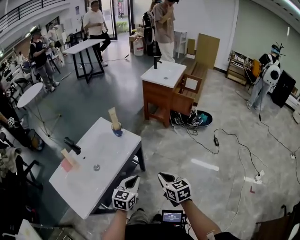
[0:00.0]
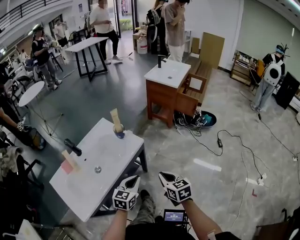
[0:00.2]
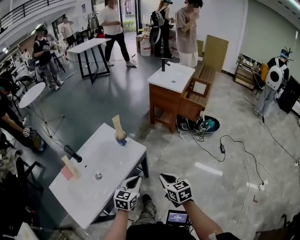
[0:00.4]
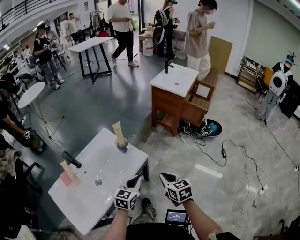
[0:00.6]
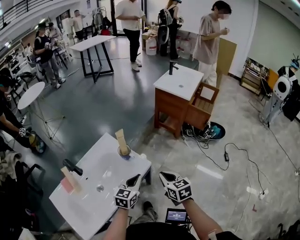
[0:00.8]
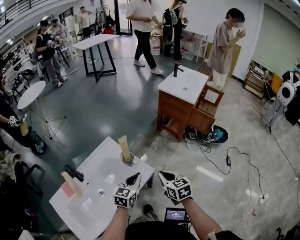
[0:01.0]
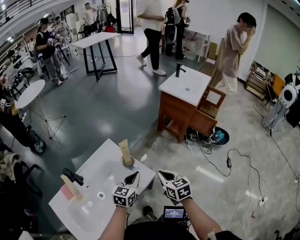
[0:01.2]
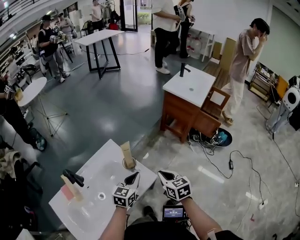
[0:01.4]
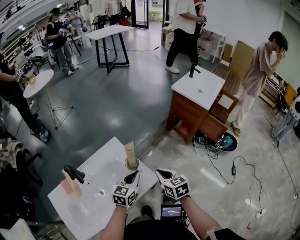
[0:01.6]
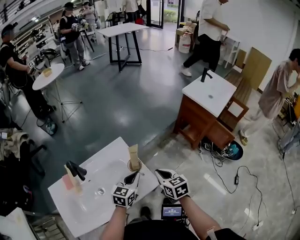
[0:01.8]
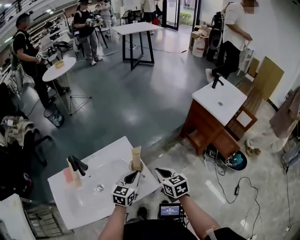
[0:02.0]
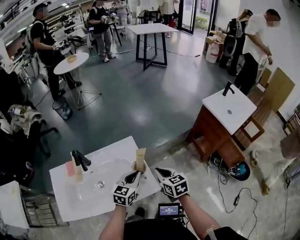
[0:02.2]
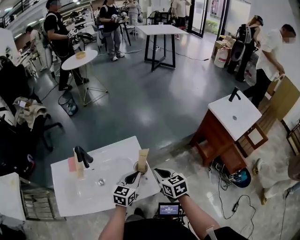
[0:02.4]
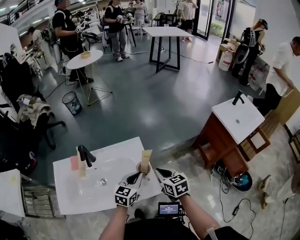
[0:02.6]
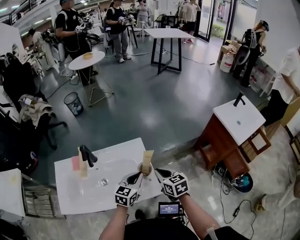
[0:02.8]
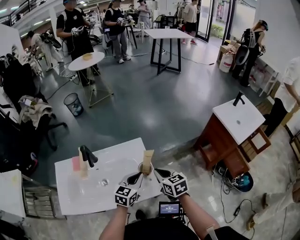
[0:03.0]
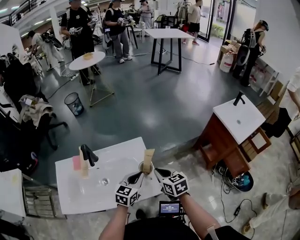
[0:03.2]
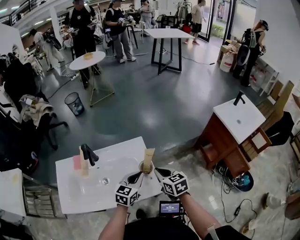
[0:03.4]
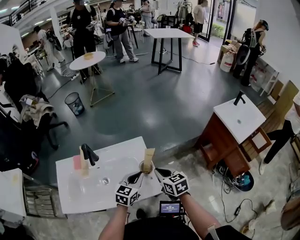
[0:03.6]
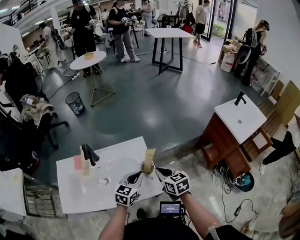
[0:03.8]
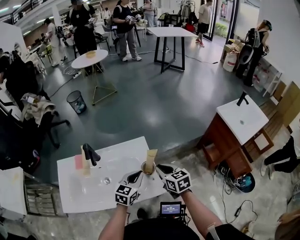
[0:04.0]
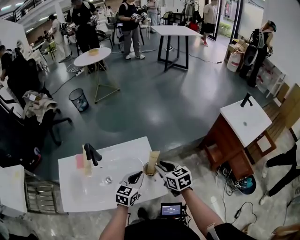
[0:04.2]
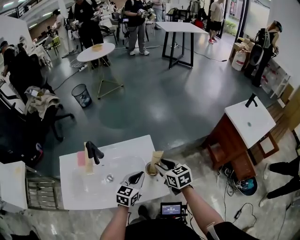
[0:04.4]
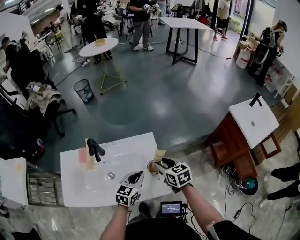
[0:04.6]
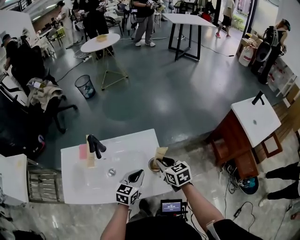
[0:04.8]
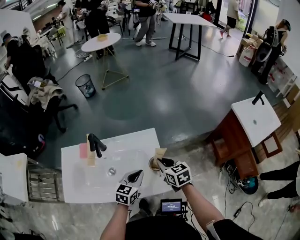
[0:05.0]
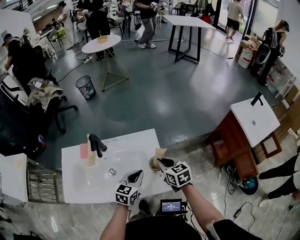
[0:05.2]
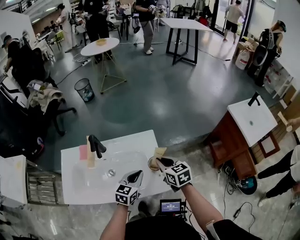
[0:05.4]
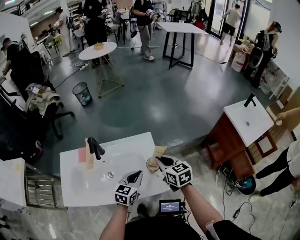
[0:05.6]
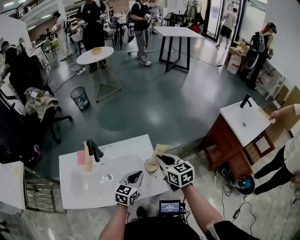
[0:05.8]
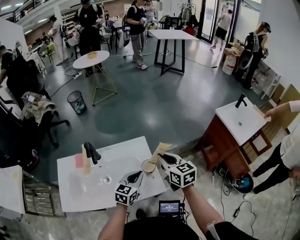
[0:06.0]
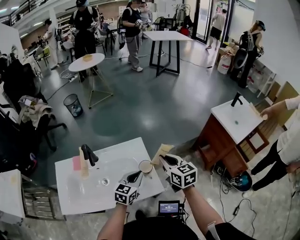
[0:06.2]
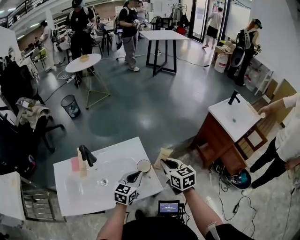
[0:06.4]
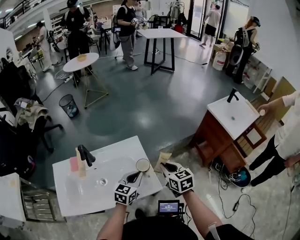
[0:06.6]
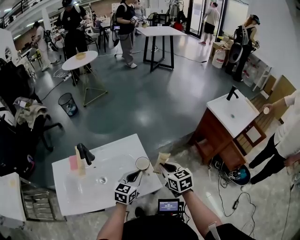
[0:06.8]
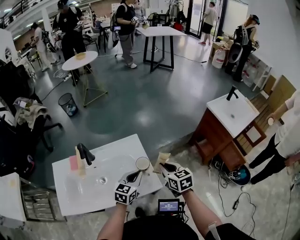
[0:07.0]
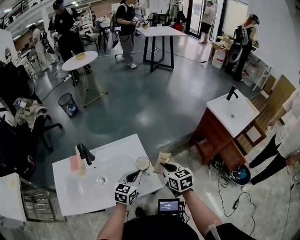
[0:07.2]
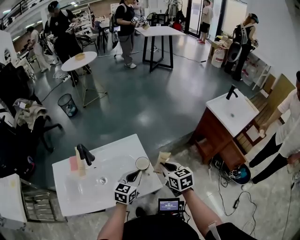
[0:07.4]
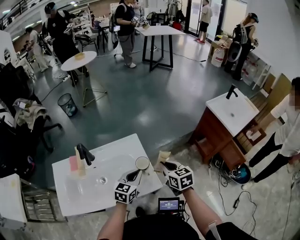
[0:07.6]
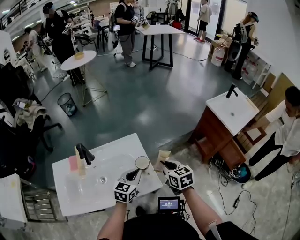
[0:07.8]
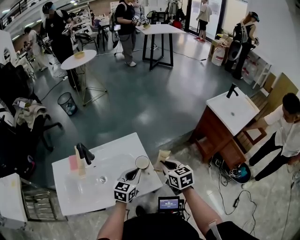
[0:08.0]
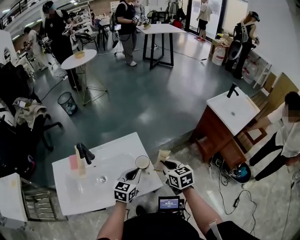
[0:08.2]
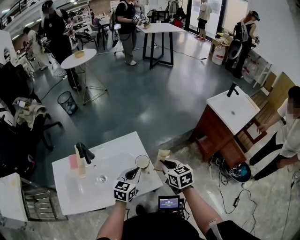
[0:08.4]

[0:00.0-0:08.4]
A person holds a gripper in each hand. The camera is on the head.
0:00.0 to 0:01.4: Both grippers travel together forward, roughly 30 cm.
0:01.4 to 0:02.8: The left gripper changes place by about 5 cm, and rotates approximately 30 degrees, while the right gripper changes place by about 10 cm, and turns by roughly 30 degrees.
0:02.8 to 0:04.2: The right gripper opens up.
0:04.2 to 0:05.6: The right gripper closes up.
0:05.6 to 0:07.0: The right gripper heads to the right, covering about 10 cm.
0:07.0 to 0:08.4: Both grippers stay put.

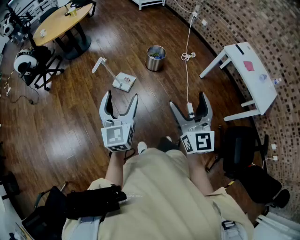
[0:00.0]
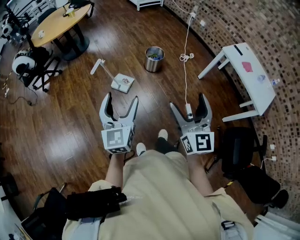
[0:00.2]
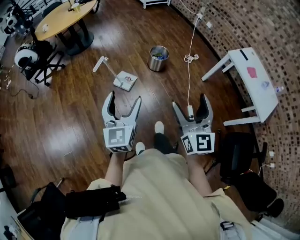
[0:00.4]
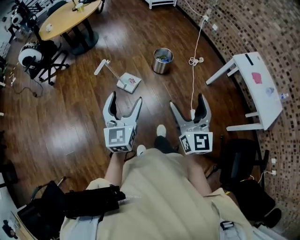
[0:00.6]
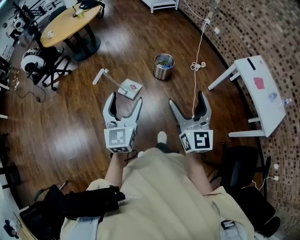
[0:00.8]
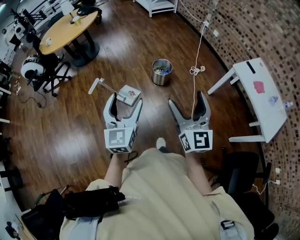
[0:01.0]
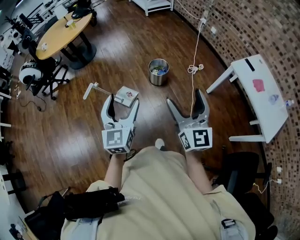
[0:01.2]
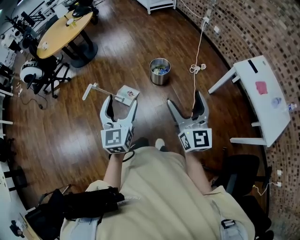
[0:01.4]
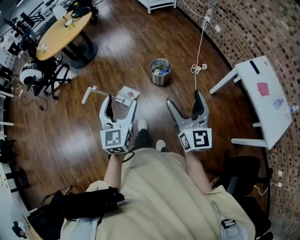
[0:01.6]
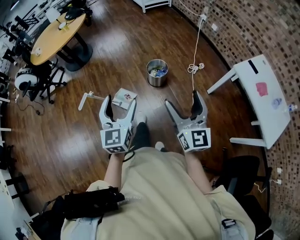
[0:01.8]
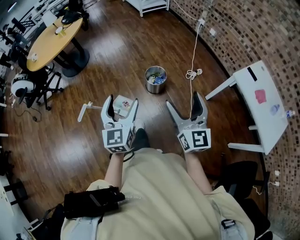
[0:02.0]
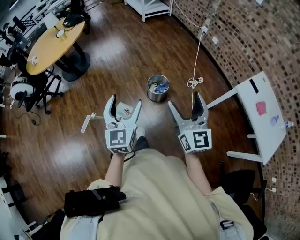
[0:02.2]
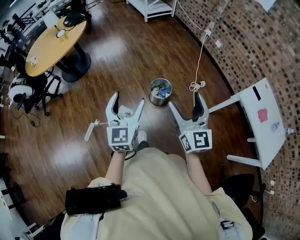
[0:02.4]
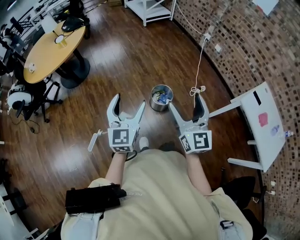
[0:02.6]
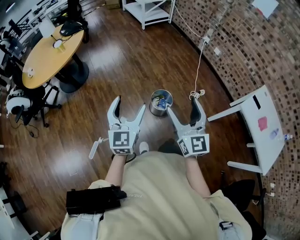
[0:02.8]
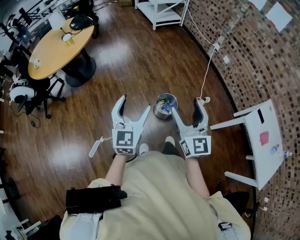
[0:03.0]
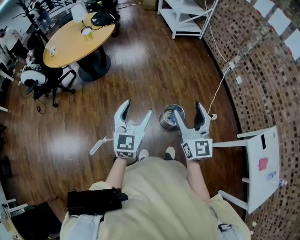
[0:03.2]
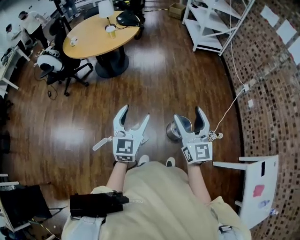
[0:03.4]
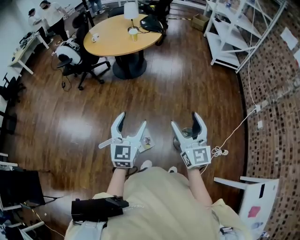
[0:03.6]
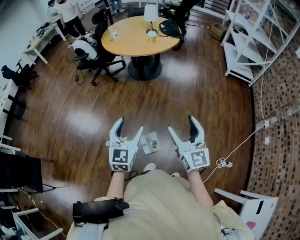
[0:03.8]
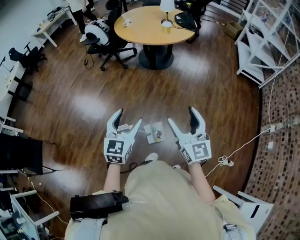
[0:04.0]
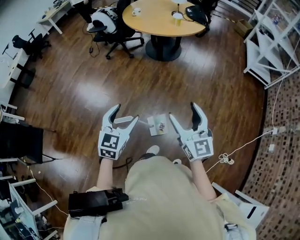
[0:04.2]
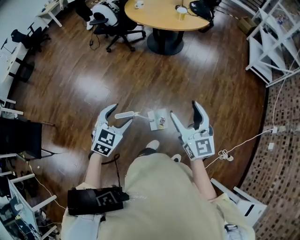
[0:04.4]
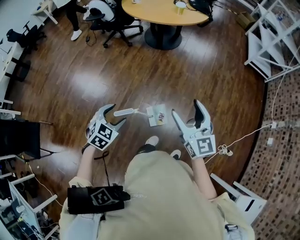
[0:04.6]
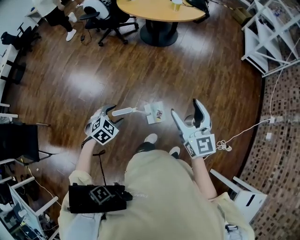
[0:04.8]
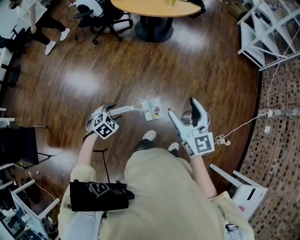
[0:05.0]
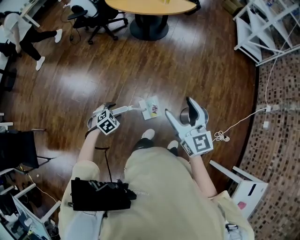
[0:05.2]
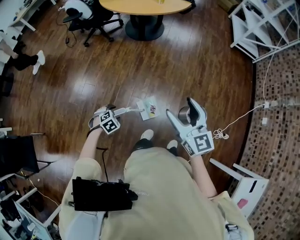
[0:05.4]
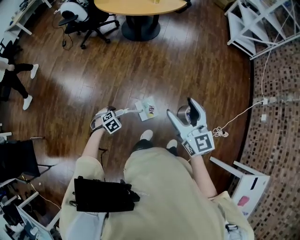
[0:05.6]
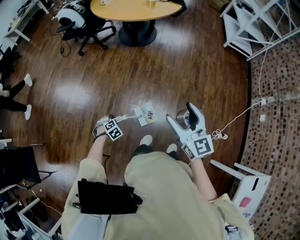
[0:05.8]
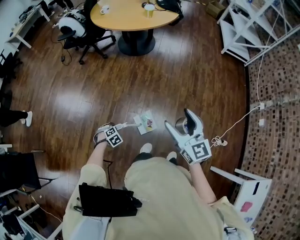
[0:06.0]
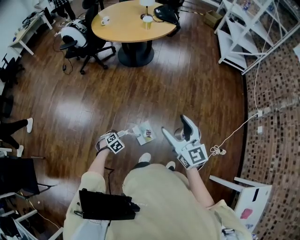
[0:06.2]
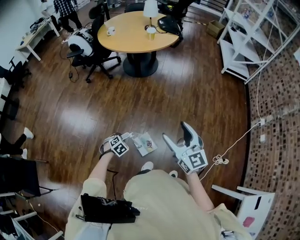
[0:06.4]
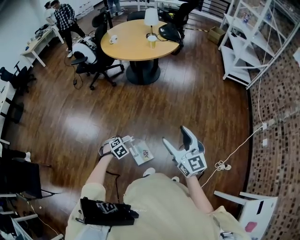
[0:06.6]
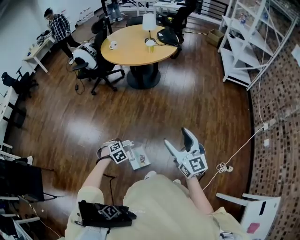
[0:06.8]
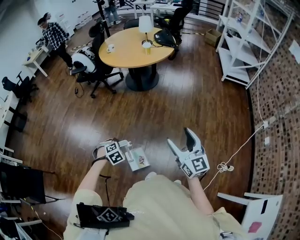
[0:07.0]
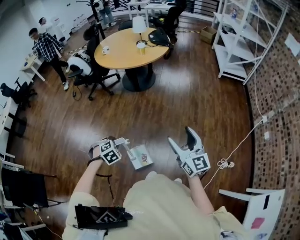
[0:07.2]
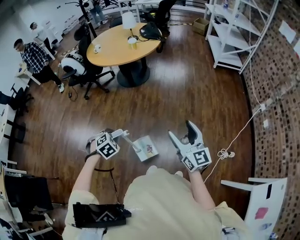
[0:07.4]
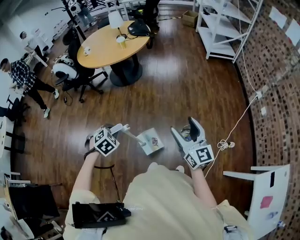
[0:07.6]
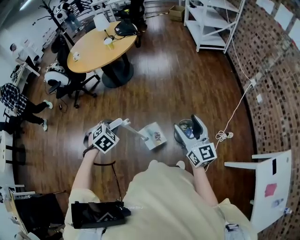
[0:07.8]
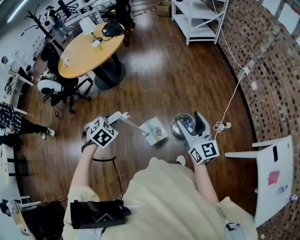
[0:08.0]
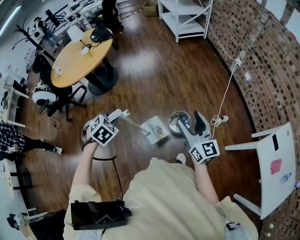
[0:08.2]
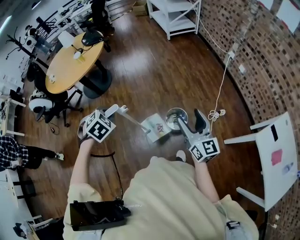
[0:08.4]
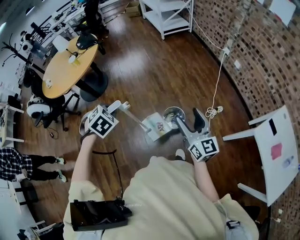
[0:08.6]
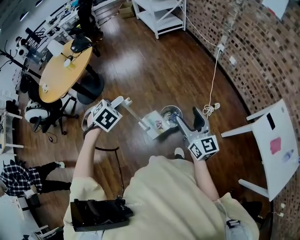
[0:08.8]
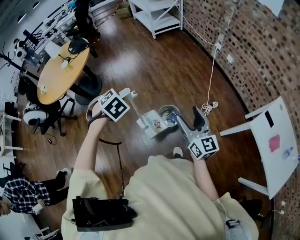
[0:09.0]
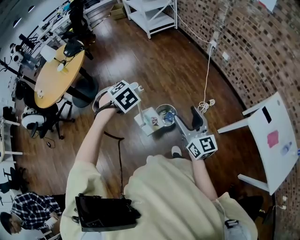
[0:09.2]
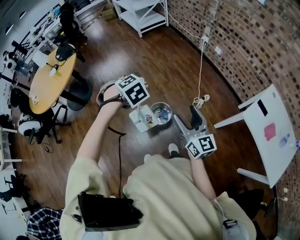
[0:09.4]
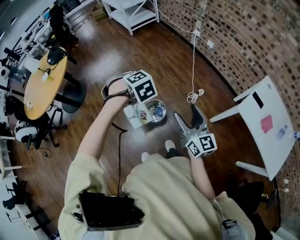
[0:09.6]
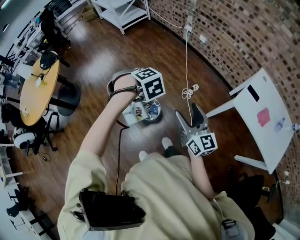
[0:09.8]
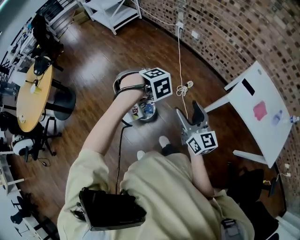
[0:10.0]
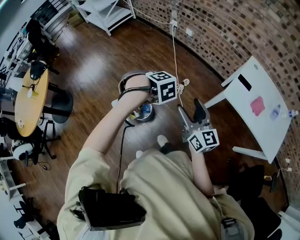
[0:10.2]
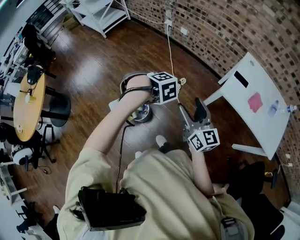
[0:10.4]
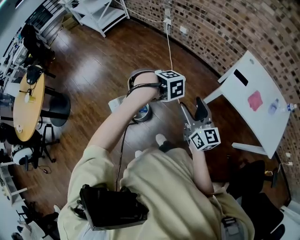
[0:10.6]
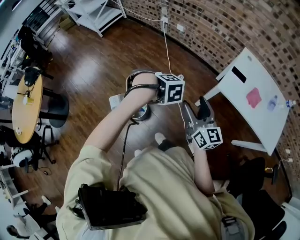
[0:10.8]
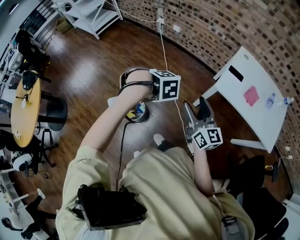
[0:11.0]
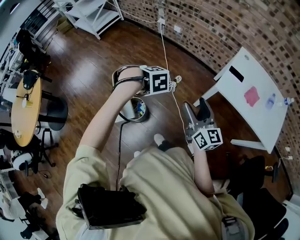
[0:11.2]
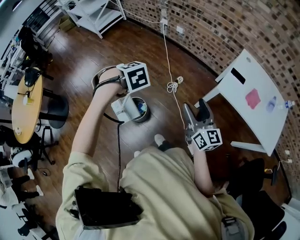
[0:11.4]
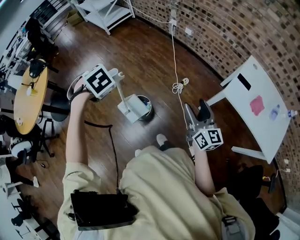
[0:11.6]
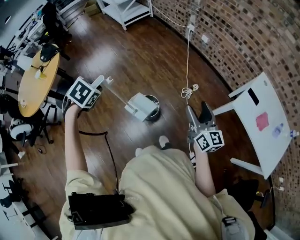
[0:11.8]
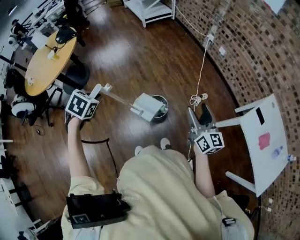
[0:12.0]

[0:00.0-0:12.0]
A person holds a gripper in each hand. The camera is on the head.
0:00.0 to 0:01.6: The two grippers go about 25 cm forward and to the right.
0:01.6 to 0:03.0: Both grippers travel together forward, about 35 cm.
0:03.0 to 0:04.4: The left gripper shifts by about 30 cm, and angles its fingers downward, by some 30 degrees, while the right gripper ends up about 25 cm from where it was, and rotates some 50 degrees.
0:04.4 to 0:06.0: The left gripper heads downward, covering some 35 cm, angles its fingers downward, by approximately 40 degrees, and closes up.
0:06.0 to 0:07.6: The left gripper travels upward by some 30 cm. The right gripper moves some 15 cm.
0:07.6 to 0:09.0: The right gripper moves to the right, about 20 cm, and changes its angle by approximately 30 degrees, while the left gripper travels to the right and forward by roughly 30 cm, and changes its angle by approximately 20 degrees.
0:09.0 to 0:10.4: The right gripper moves to the right and backward, about 25 cm, and turns by some 20 degrees, while the left gripper moves to the right, about 35 cm, and rolls clockwise, seen from behind, by roughly 40 degrees.
0:10.4 to 0:12.0: The right gripper shifts by approximately 10 cm. Meanwhile the left gripper ends up approximately 40 cm from where it was, and rotates around the line of its fingers by some 60 degrees, counterclockwise from behind.

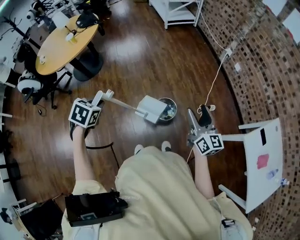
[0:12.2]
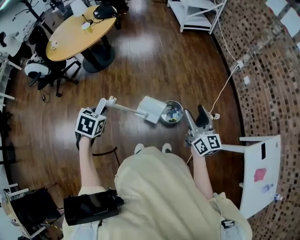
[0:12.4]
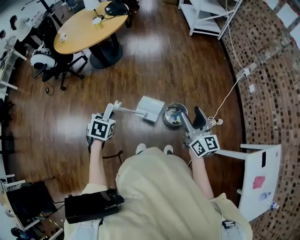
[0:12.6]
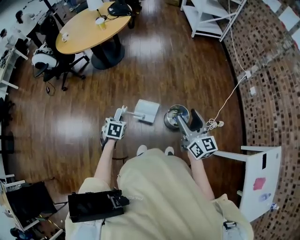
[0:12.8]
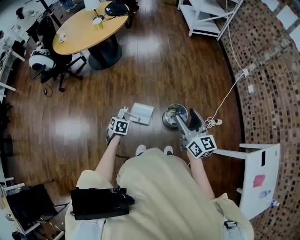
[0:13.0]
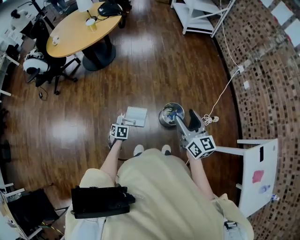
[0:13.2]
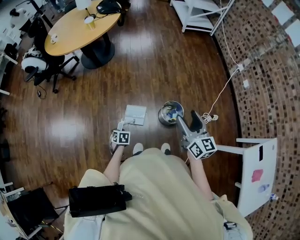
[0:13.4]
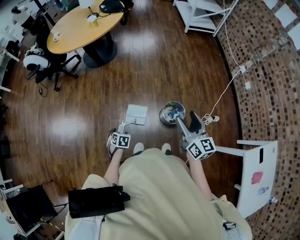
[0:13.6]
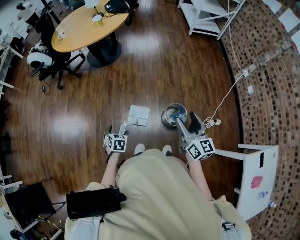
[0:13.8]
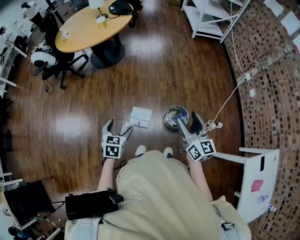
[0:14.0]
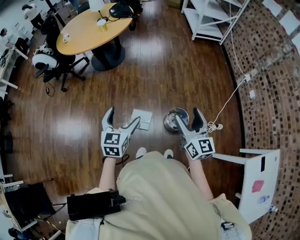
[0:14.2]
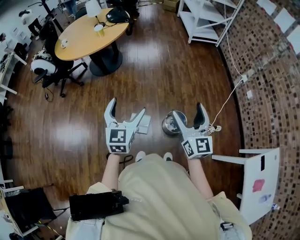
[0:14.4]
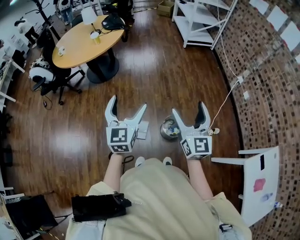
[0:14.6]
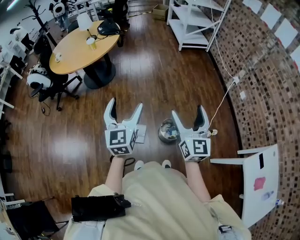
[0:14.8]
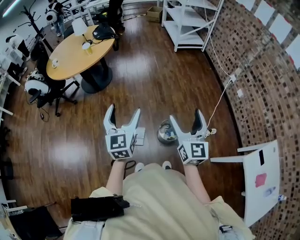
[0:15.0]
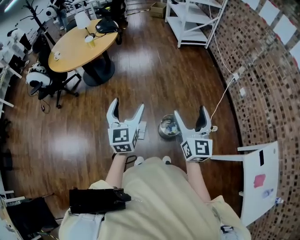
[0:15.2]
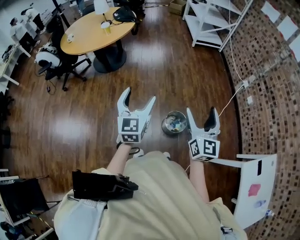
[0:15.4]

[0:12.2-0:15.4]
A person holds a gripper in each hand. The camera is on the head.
0:12.2 to 0:13.8: The left gripper moves downward, some 25 cm, changes its angle by about 30 degrees, and opens; the right gripper ends up approximately 20 cm from where it was.
0:13.8 to 0:15.4: The right gripper goes roughly 15 cm upward and to the right, and rotates roughly 30 degrees. Meanwhile the left gripper is displaced upward and to the right by about 35 cm, and tips its fingers upward by roughly 50 degrees.
